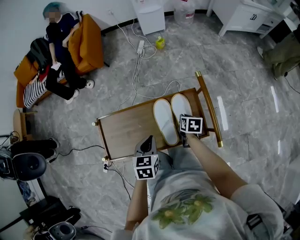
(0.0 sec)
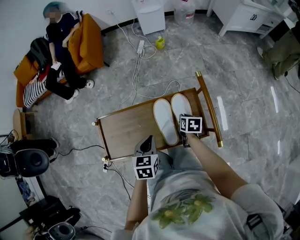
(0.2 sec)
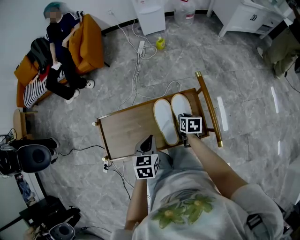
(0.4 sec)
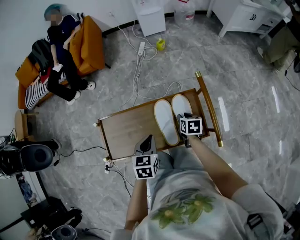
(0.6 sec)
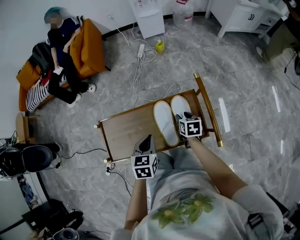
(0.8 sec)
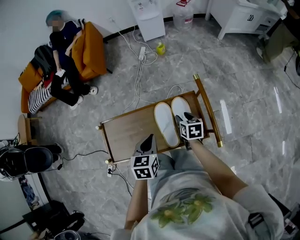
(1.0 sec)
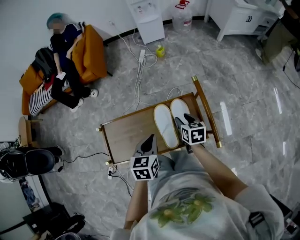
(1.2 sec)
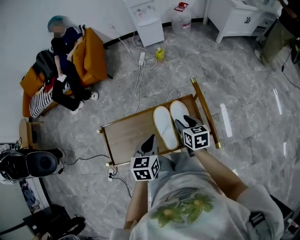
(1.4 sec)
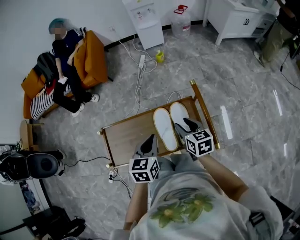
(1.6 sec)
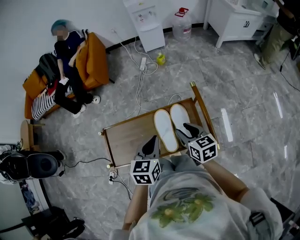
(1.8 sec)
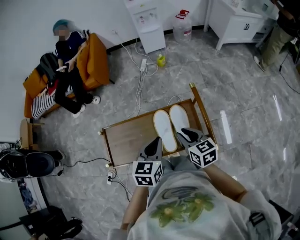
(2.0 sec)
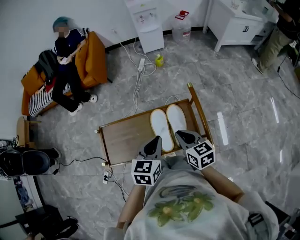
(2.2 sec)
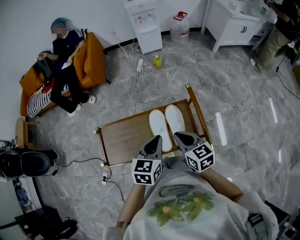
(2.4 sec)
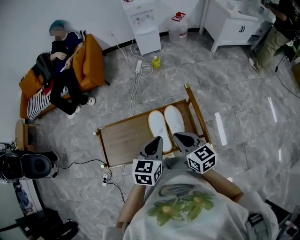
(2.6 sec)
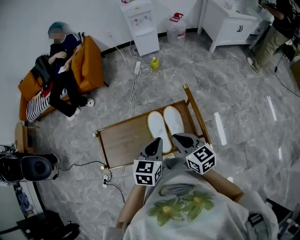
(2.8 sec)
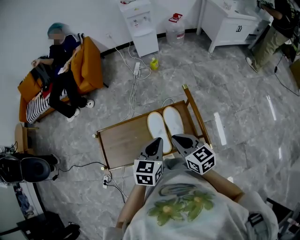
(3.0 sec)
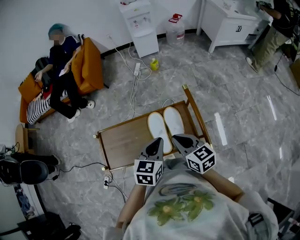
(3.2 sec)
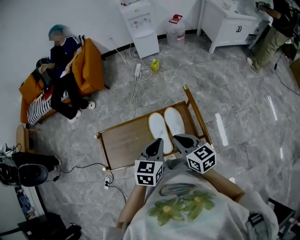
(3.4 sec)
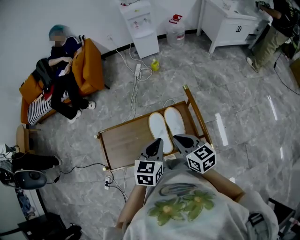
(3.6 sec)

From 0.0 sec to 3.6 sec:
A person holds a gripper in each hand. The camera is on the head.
From 0.0 sec to 1.8 sec: The left gripper goes about 10 cm upward. Meanwhile the right gripper travels upward by some 20 cm, rotates approximately 40 degrees, and opens up.
From 1.8 sec to 3.6 sec: The right gripper changes place by approximately 5 cm, and closes.

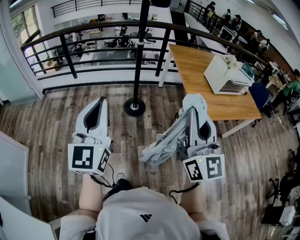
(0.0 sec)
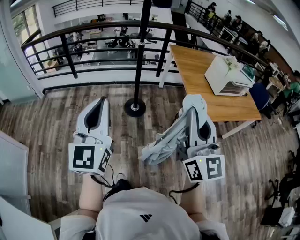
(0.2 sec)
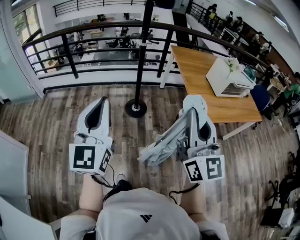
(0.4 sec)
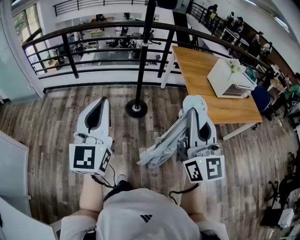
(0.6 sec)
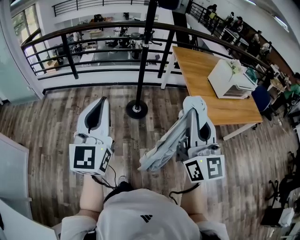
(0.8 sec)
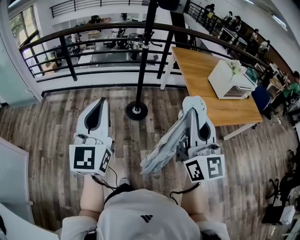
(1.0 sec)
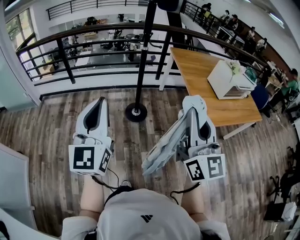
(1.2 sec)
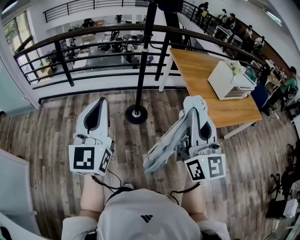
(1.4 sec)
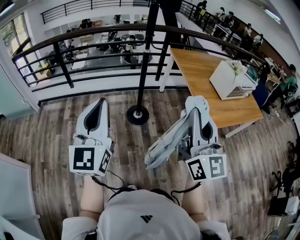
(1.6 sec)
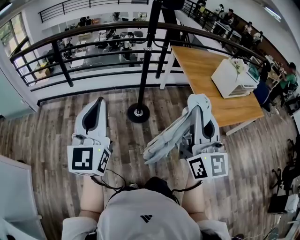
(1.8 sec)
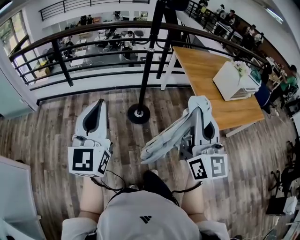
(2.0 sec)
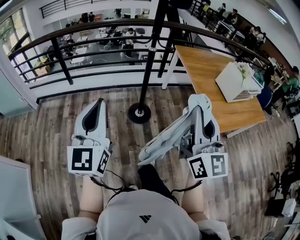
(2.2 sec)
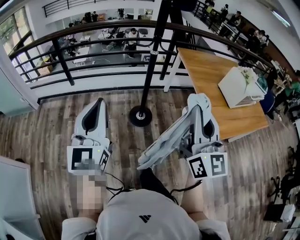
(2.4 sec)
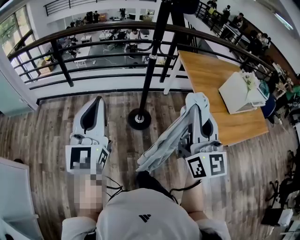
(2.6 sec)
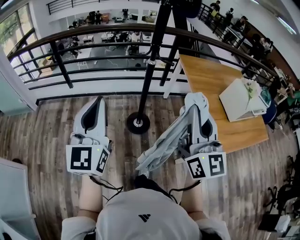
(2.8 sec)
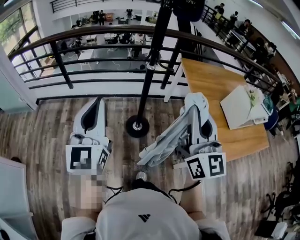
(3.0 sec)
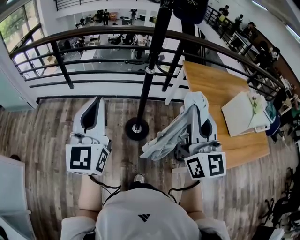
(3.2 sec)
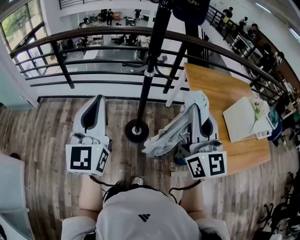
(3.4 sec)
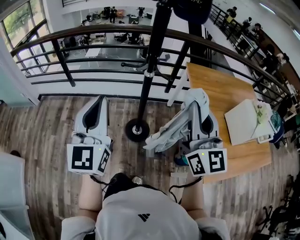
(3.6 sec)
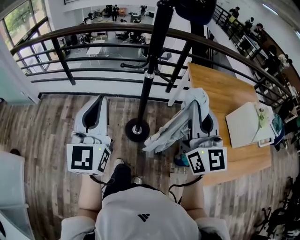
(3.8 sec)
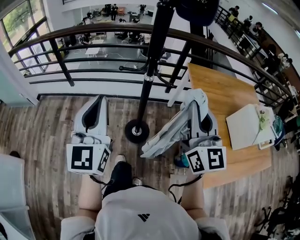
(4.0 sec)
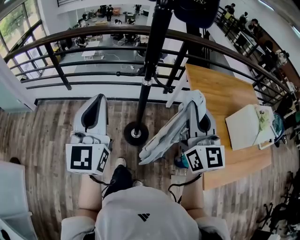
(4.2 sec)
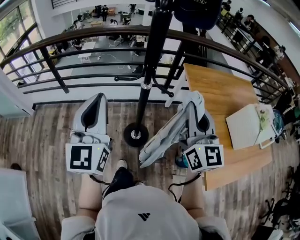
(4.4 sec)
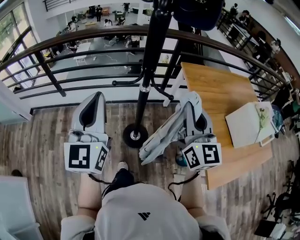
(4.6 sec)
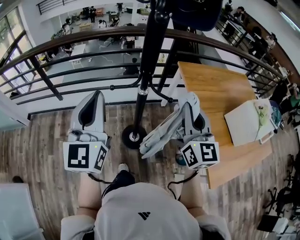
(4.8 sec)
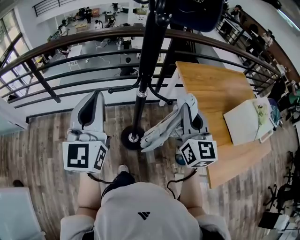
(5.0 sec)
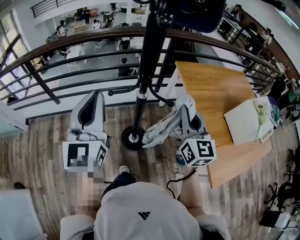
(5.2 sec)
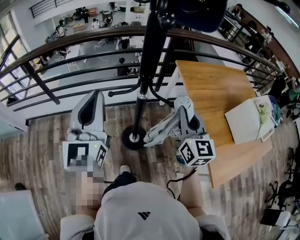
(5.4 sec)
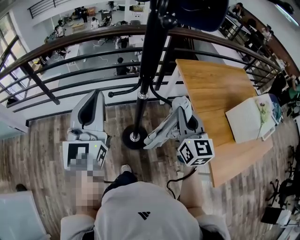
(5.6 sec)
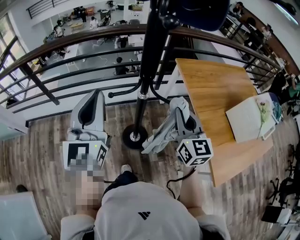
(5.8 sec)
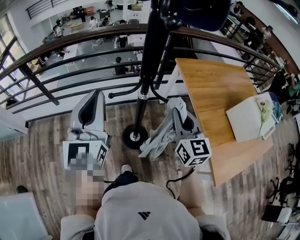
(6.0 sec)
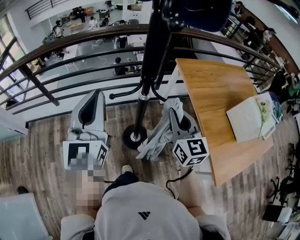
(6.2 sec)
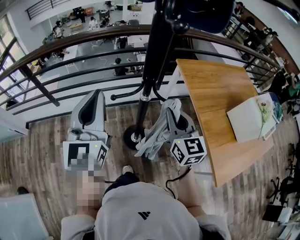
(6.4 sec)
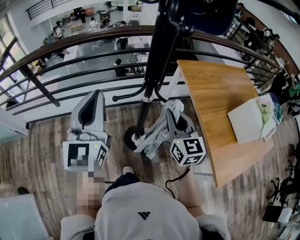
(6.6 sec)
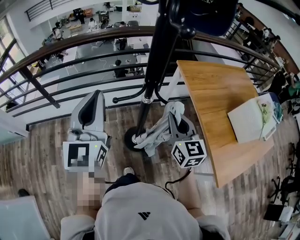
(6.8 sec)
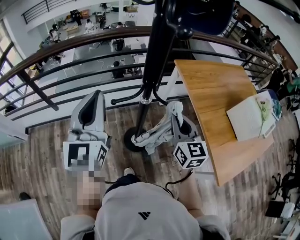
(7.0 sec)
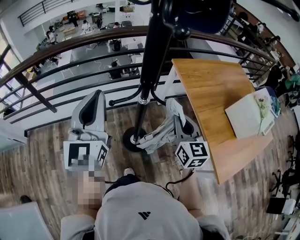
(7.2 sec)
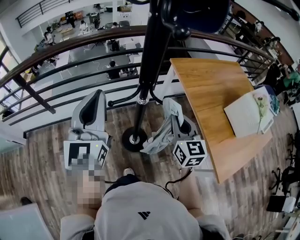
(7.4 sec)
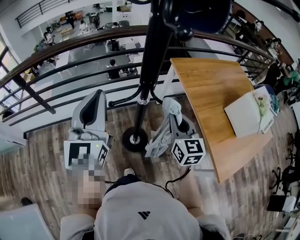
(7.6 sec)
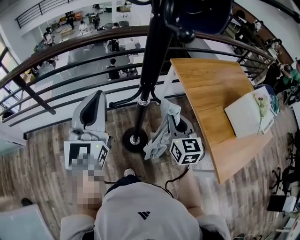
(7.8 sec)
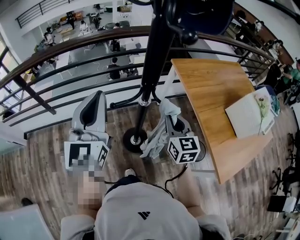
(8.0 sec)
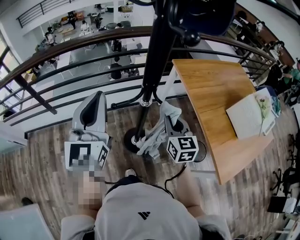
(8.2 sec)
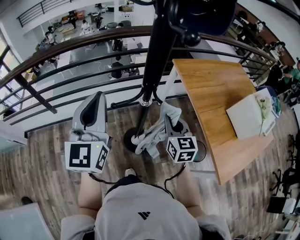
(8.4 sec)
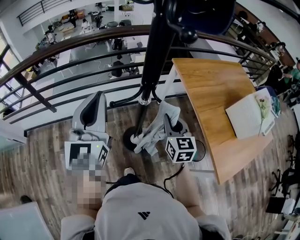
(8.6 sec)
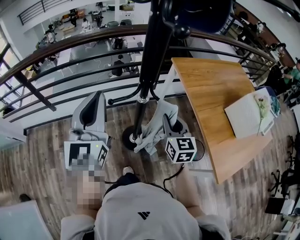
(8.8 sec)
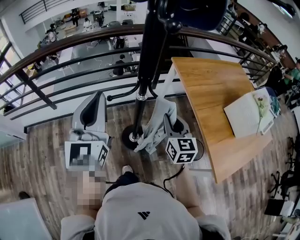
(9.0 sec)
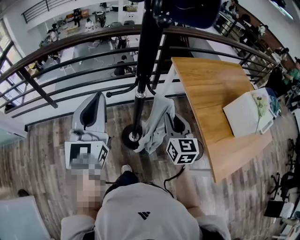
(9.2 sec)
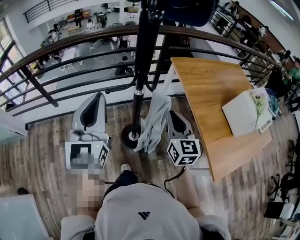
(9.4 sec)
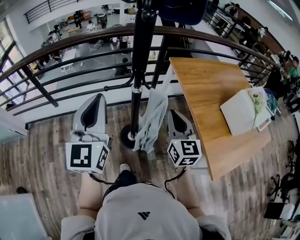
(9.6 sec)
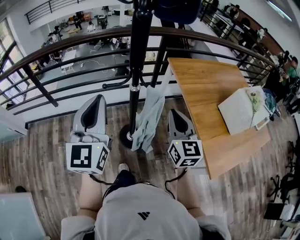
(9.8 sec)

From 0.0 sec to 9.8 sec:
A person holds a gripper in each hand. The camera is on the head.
From 0.0 sec to 1.4 sec: The right gripper goes approximately 10 cm to the left and forward; the left gripper moves forward and to the left, some 15 cm.
From 1.4 sec to 2.8 sec: The two grippers go roughly 20 cm forward.
From 2.8 sec to 4.2 sec: The right gripper heads forward, covering about 20 cm. Meanwhile the left gripper goes some 20 cm forward and to the right.
From 4.2 sec to 5.6 sec: The right gripper shifts some 15 cm downward and forward; the left gripper moves forward, roughly 10 cm.
From 5.6 sec to 7.0 sec: The right gripper shifts by about 5 cm.
From 7.0 sec to 8.4 sec: The right gripper moves downward, about 5 cm.
From 8.4 sec to 9.8 sec: The right gripper shifts roughly 15 cm backward and upward. Meanwhile the left gripper travels backward by roughly 10 cm.

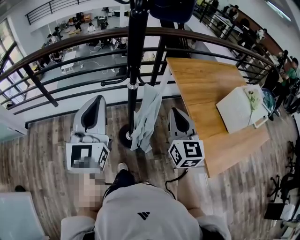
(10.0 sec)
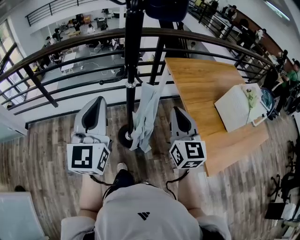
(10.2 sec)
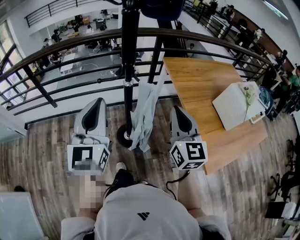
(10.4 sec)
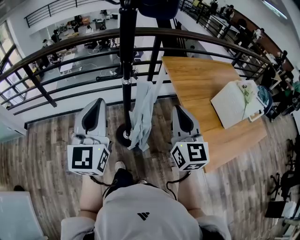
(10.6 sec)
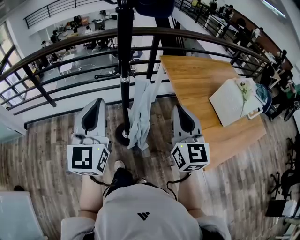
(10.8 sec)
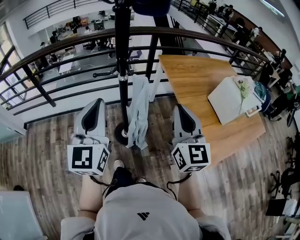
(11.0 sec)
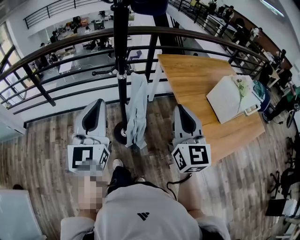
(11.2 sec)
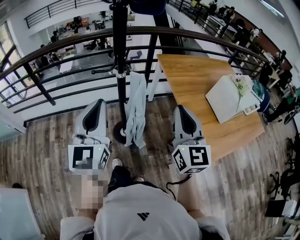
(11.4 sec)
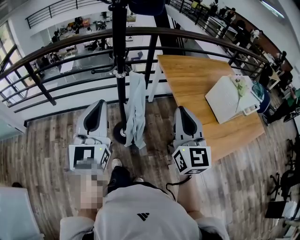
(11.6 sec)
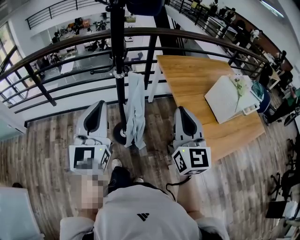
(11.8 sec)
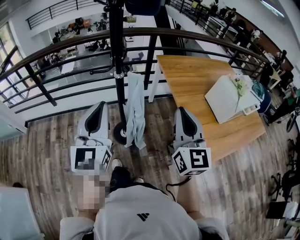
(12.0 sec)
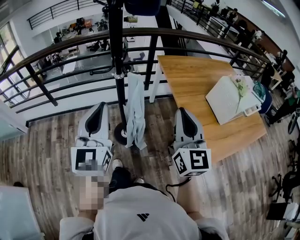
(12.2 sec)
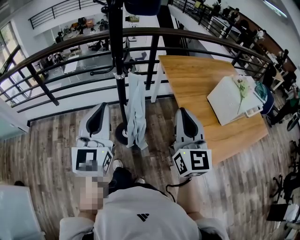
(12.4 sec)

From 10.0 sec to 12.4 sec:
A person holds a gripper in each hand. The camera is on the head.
From 10.0 sec to 11.2 sec: The right gripper moves backward, upward and to the right, some 15 cm. The left gripper travels backward and to the right by some 10 cm.
From 11.2 sec to 12.4 sec: The grippers make only small movements.

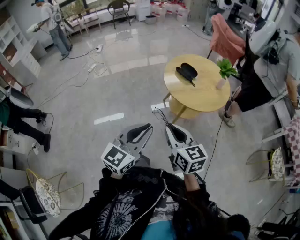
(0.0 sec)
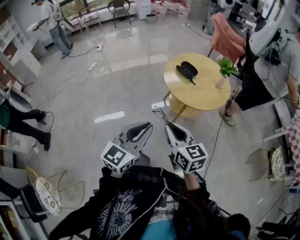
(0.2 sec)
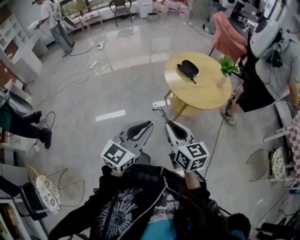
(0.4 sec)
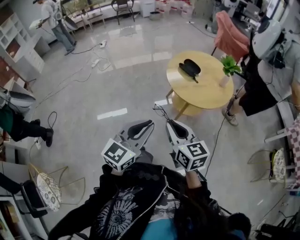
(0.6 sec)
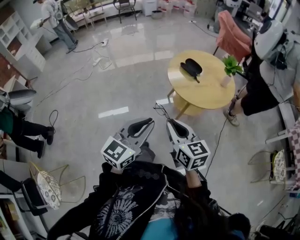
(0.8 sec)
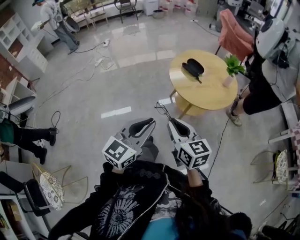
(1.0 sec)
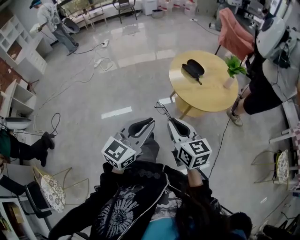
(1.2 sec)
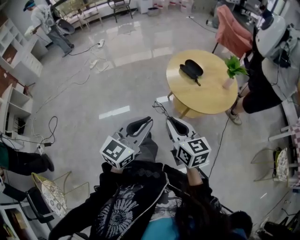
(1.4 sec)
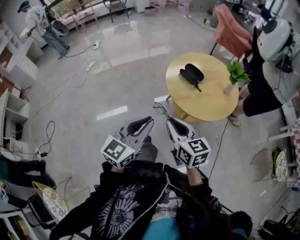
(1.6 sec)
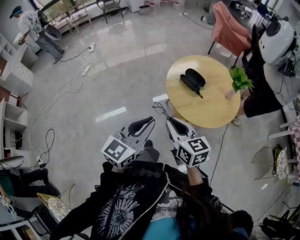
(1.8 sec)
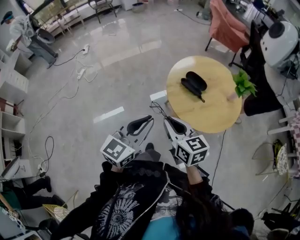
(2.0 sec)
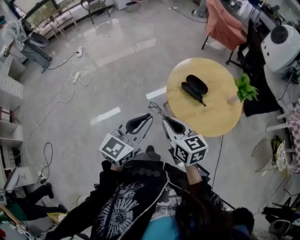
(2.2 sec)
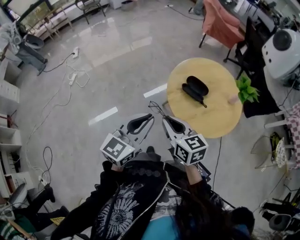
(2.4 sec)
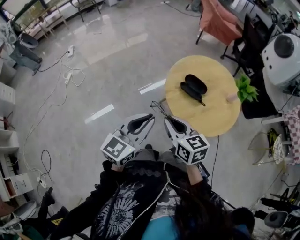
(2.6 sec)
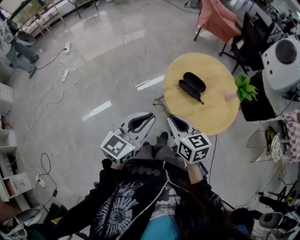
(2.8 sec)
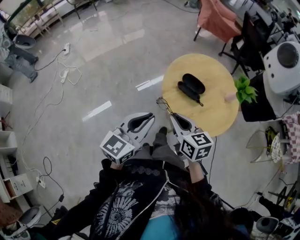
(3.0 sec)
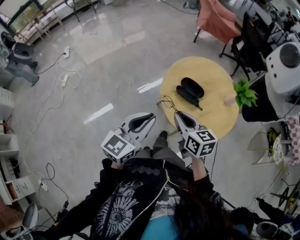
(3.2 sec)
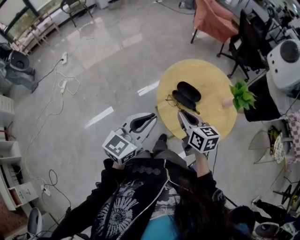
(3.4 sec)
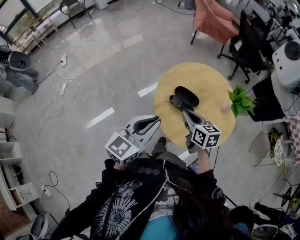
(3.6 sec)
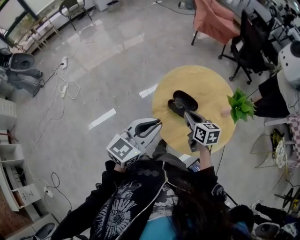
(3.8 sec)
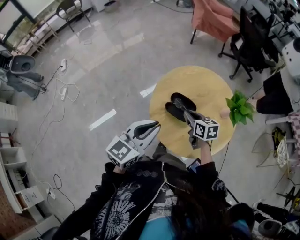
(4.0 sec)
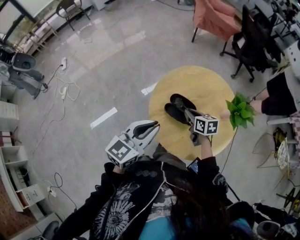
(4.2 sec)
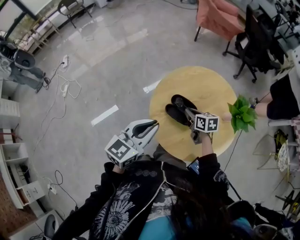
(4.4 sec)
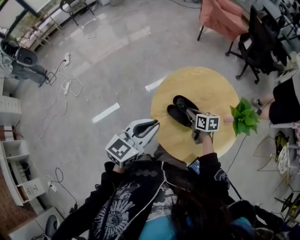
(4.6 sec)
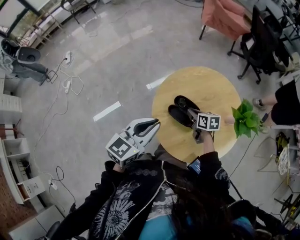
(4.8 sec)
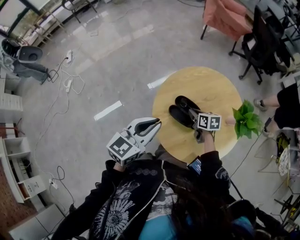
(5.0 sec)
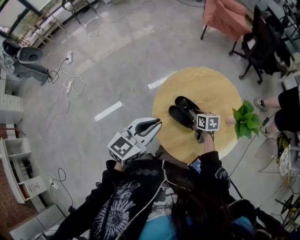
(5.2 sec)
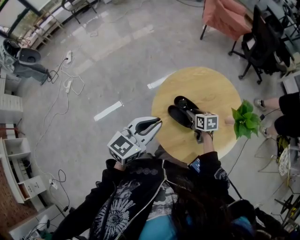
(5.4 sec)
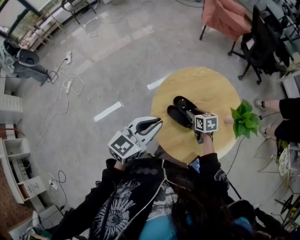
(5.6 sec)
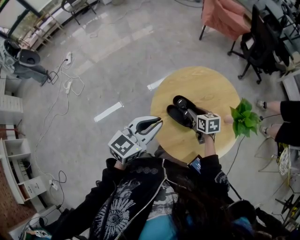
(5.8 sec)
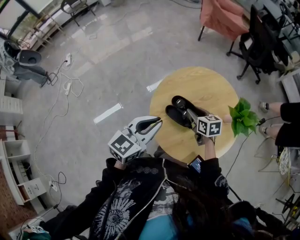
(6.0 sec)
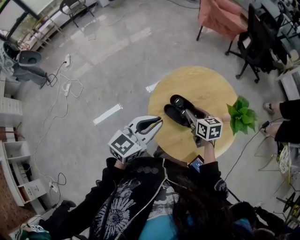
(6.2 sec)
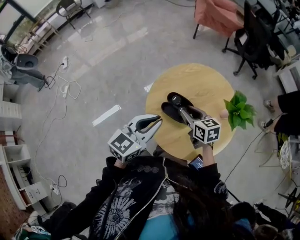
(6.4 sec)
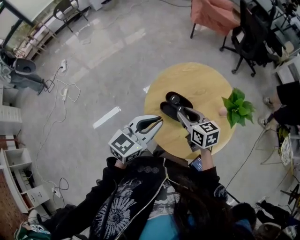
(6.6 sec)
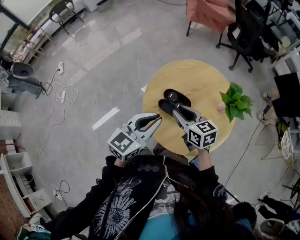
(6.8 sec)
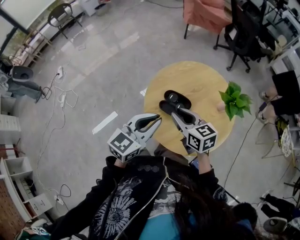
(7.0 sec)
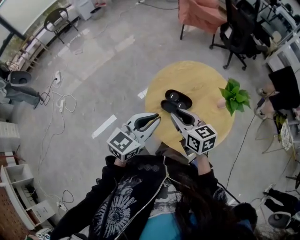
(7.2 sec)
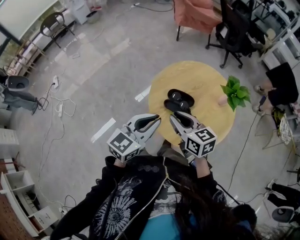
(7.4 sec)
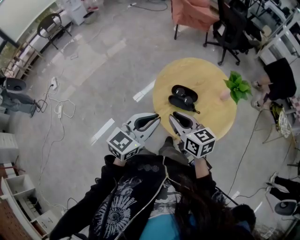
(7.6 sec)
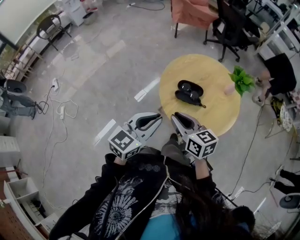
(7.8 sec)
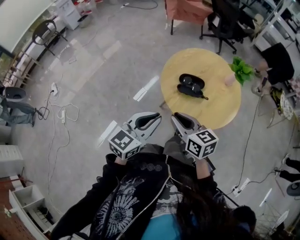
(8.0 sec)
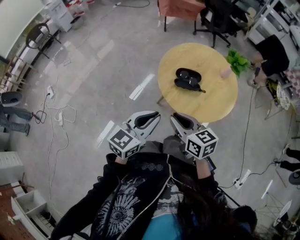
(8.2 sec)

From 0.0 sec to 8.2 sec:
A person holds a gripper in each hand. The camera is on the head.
From 0.0 sec to 1.6 sec: Both grippers travel together forward, approximately 15 cm.
From 1.6 sec to 3.2 sec: Both grippers travel together forward, roughly 30 cm.
From 3.2 sec to 5.0 sec: The left gripper goes roughly 20 cm forward and to the right. The right gripper heads forward, downward and to the right, covering approximately 30 cm, and changes its angle by approximately 20 degrees.
From 5.0 sec to 6.6 sec: The right gripper moves upward and backward, roughly 15 cm, and changes its angle by about 20 degrees.
From 6.6 sec to 8.2 sec: The left gripper is displaced to the left and backward by about 20 cm; the right gripper goes approximately 25 cm backward and to the left.
